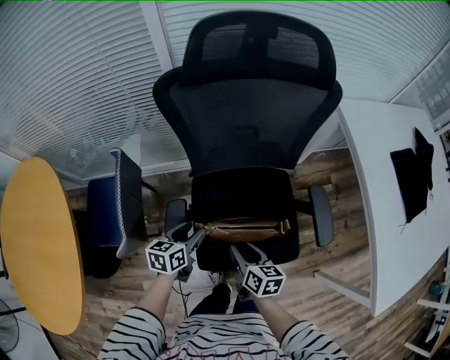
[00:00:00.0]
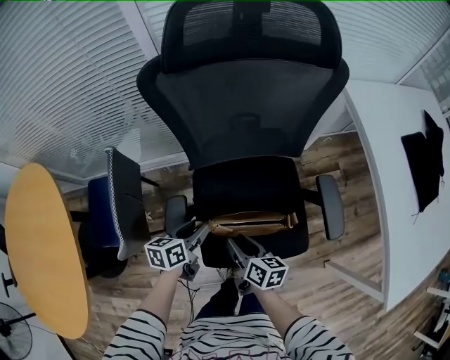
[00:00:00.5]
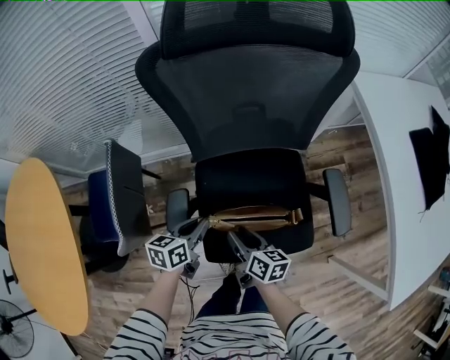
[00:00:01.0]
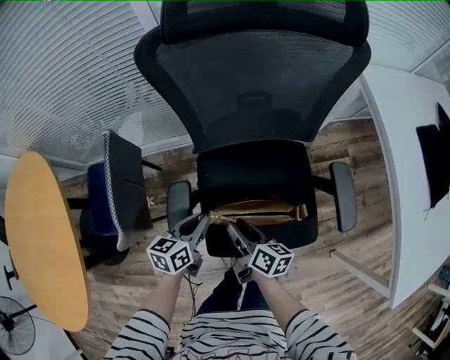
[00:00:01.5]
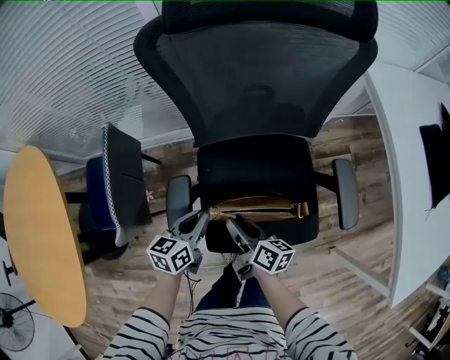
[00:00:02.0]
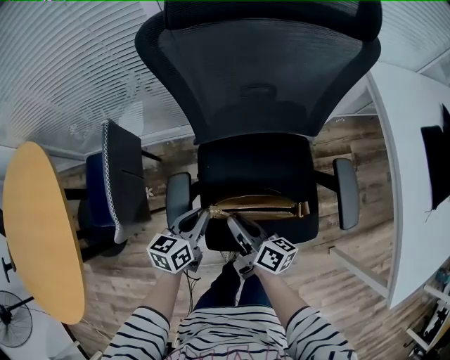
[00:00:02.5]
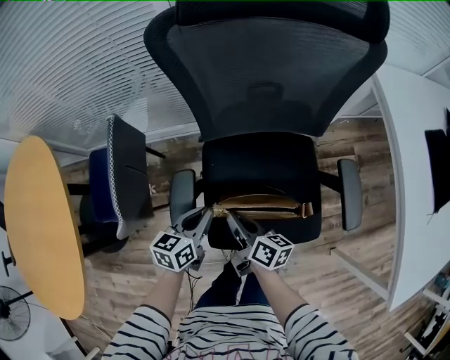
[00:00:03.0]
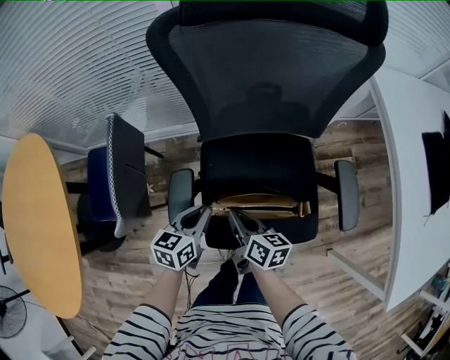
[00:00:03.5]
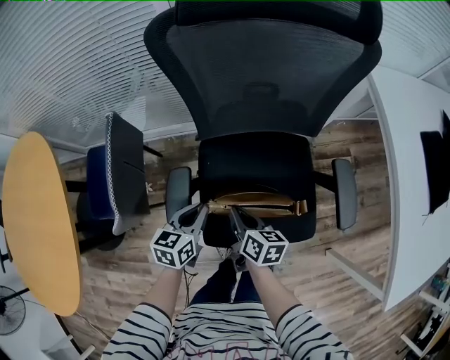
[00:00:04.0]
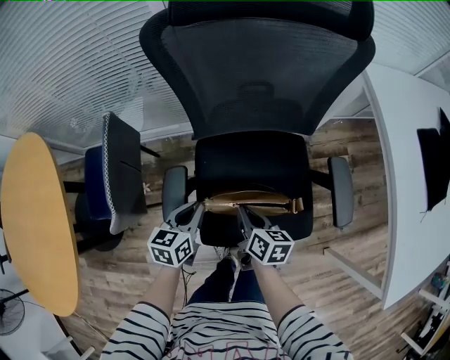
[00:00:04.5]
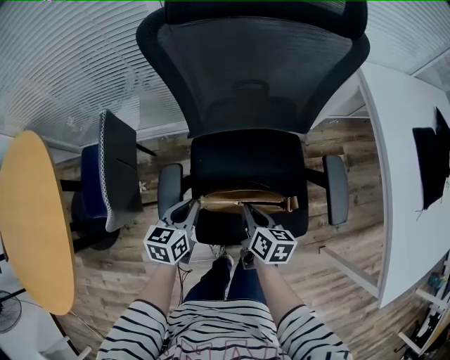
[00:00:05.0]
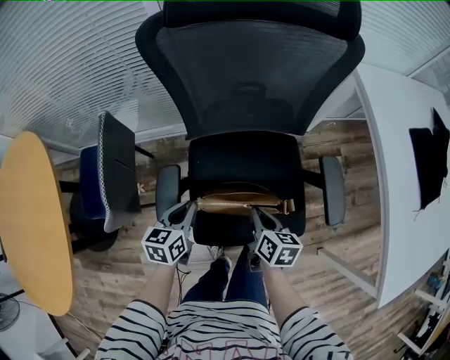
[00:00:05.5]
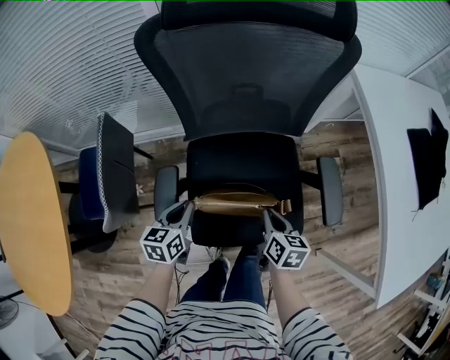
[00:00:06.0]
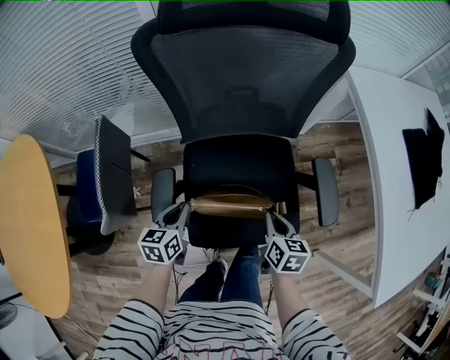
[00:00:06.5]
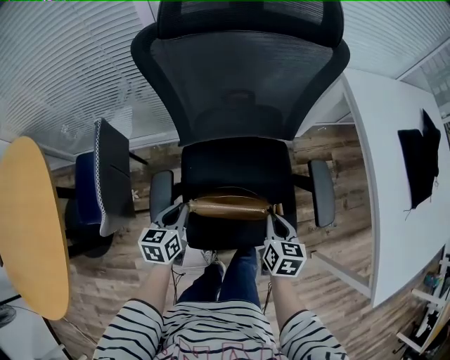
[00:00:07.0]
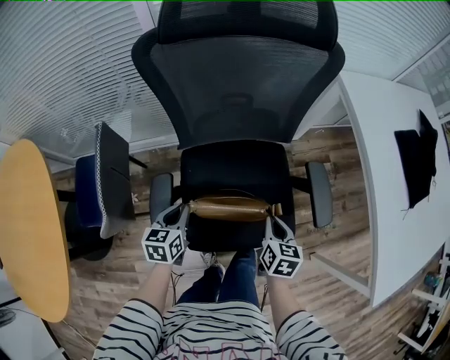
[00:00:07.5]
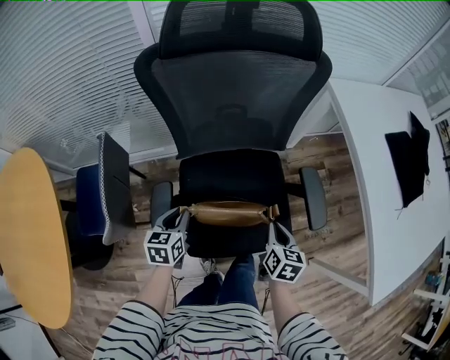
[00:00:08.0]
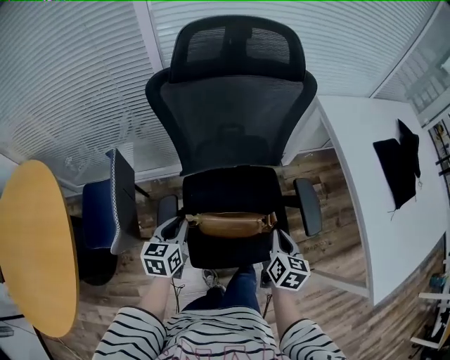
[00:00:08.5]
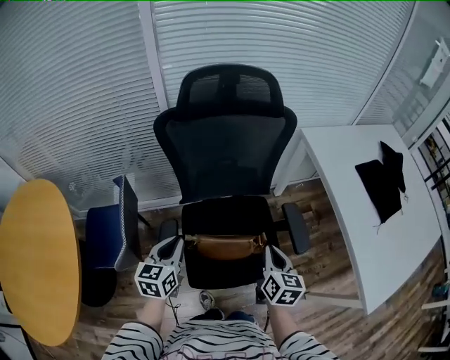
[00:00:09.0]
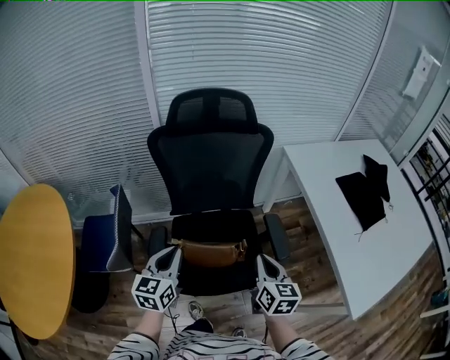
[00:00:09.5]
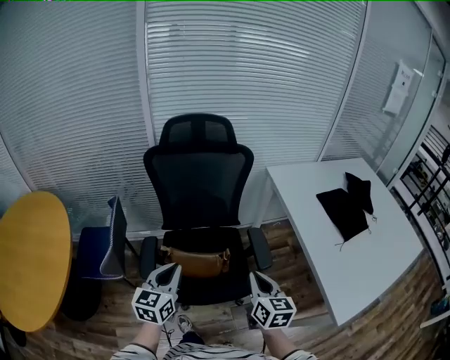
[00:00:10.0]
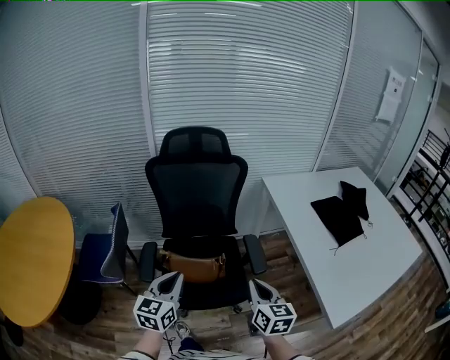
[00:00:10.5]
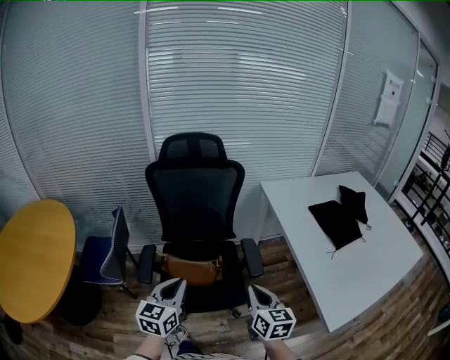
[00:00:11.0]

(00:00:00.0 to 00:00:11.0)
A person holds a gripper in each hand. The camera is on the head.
00:00:00.0 - 00:00:02.0: The left gripper closes. The right gripper moves about 5 cm, and turns by approximately 20 degrees.
00:00:02.0 - 00:00:03.5: The right gripper closes.
00:00:03.5 - 00:00:05.5: The right gripper is displaced to the right by roughly 10 cm.
00:00:05.5 - 00:00:07.5: The right gripper heads to the right, covering roughly 10 cm.
00:00:07.5 - 00:00:09.0: The two grippers go some 20 cm upward.
00:00:09.0 - 00:00:11.0: The right gripper moves backward, to the right and upward, approximately 25 cm. The left gripper shifts about 30 cm to the right, backward and upward.

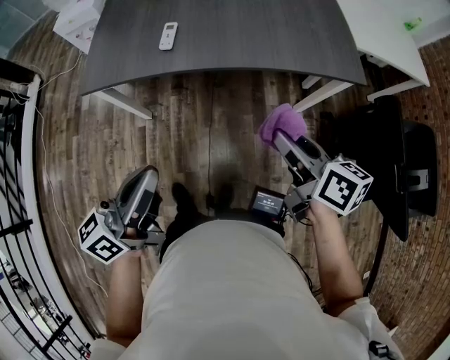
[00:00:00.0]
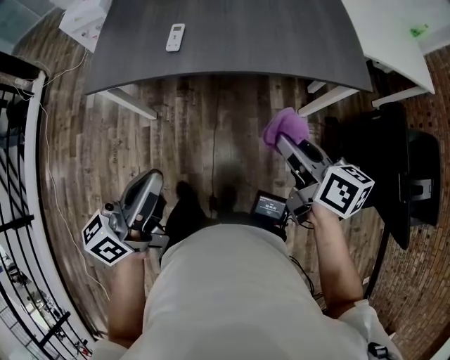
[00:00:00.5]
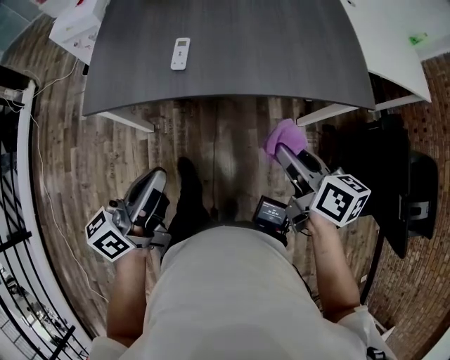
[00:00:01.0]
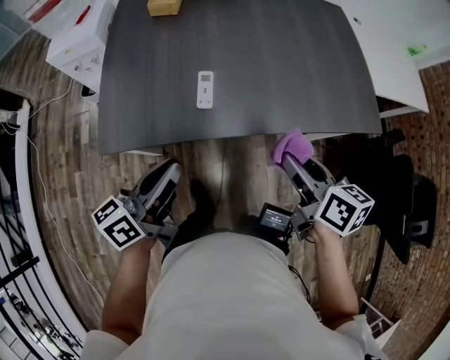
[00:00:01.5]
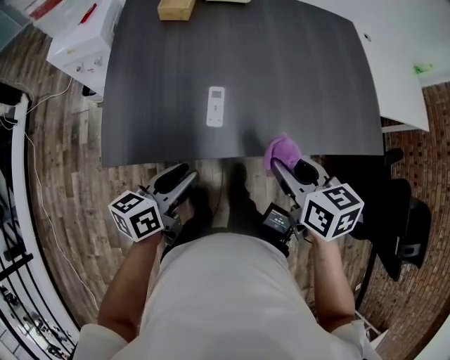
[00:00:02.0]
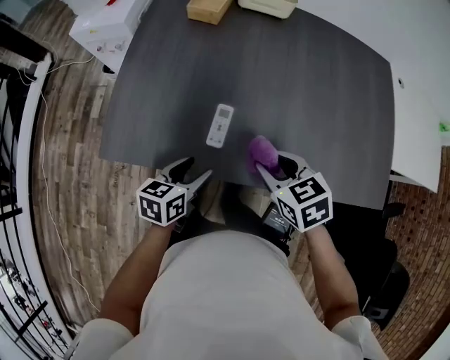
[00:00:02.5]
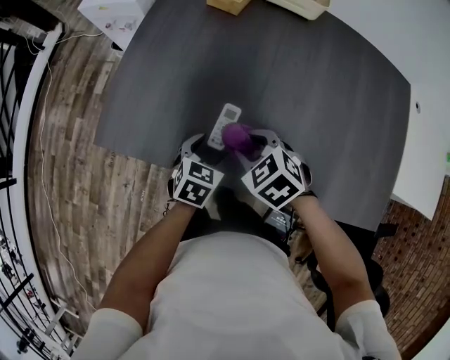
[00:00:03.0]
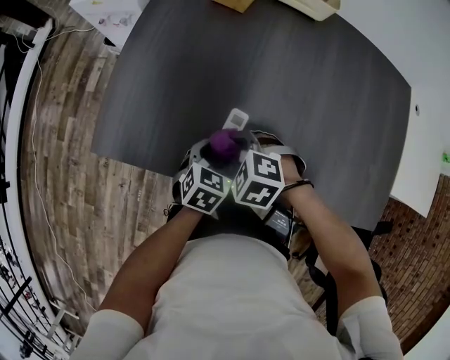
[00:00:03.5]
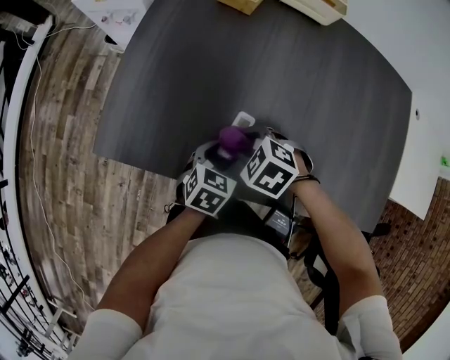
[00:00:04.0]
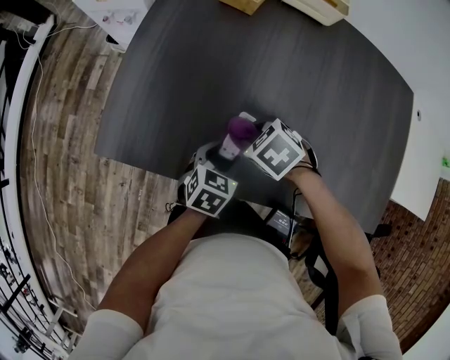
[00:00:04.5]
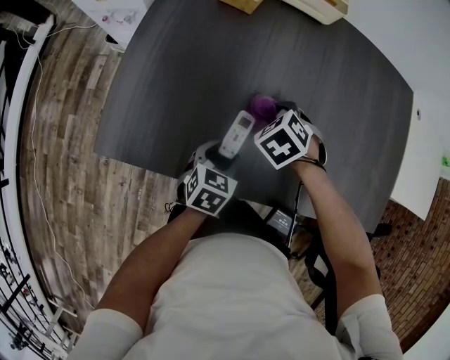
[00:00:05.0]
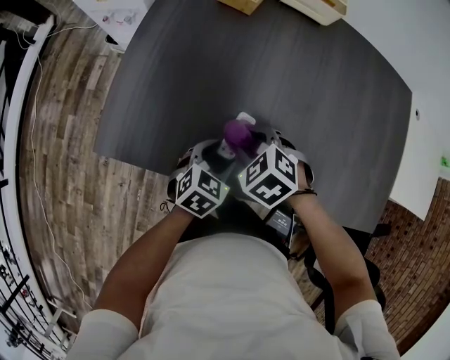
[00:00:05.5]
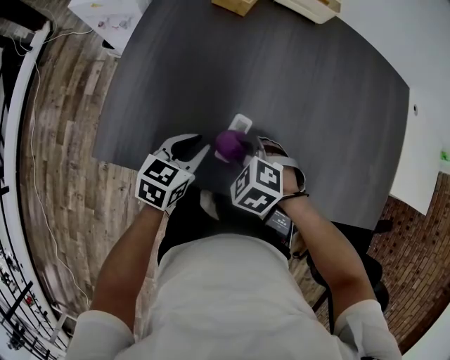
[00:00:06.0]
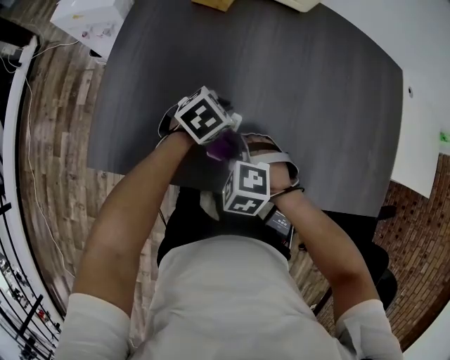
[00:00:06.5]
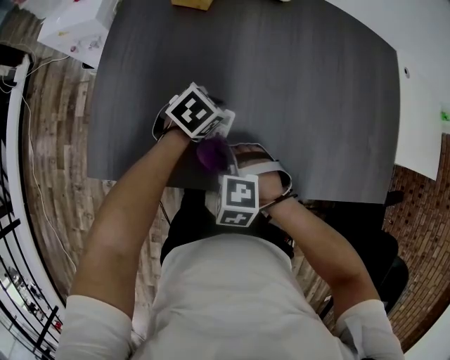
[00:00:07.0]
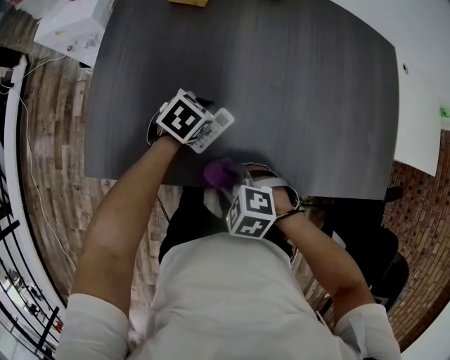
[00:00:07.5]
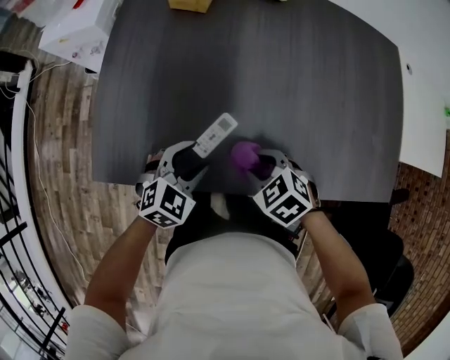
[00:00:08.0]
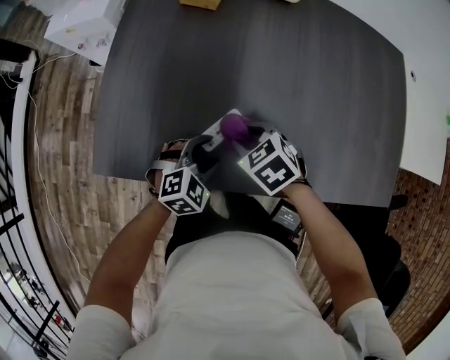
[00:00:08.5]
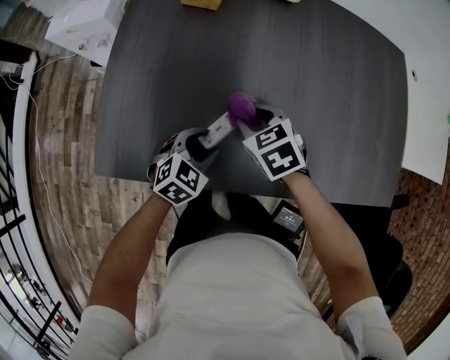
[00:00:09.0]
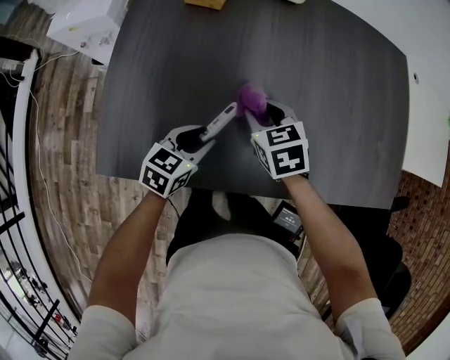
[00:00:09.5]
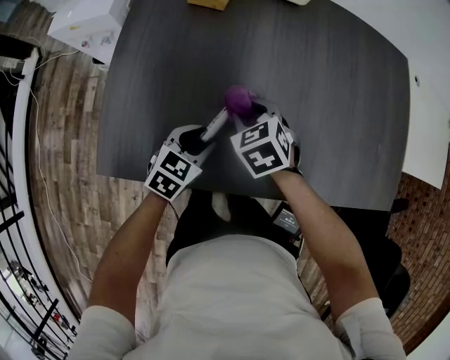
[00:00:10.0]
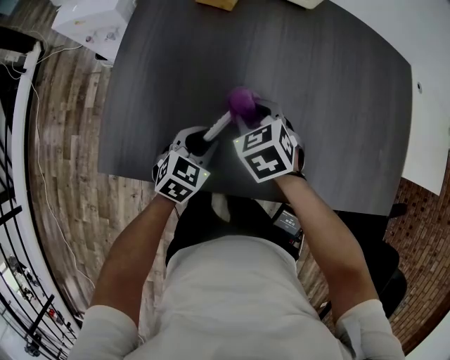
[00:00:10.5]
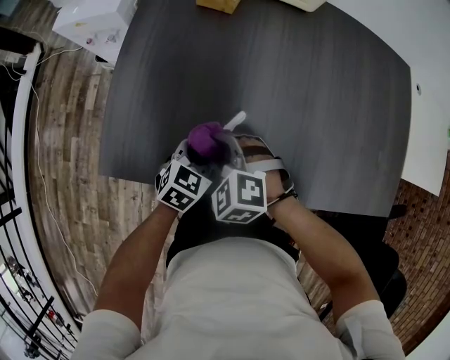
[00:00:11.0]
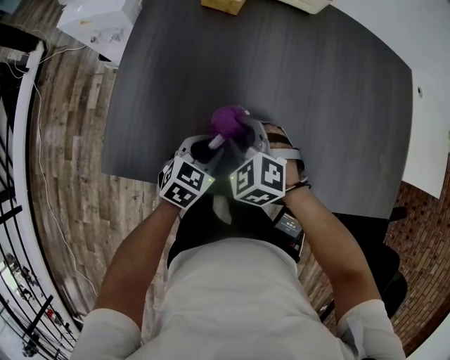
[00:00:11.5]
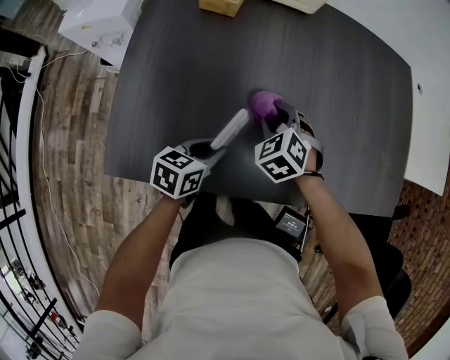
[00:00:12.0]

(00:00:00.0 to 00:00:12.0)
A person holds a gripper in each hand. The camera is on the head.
00:00:00.0 - 00:00:02.0: The right gripper goes roughly 25 cm forward and to the left, and swivels roughly 30 degrees. The left gripper shifts roughly 30 cm forward, to the left and downward, rotates roughly 20 degrees, and opens.
00:00:02.0 - 00:00:04.0: The right gripper shifts by about 25 cm, and twists roughly 60 degrees counterclockwise, seen from behind. Meanwhile the left gripper shifts by approximately 20 cm, and angles its fingers downward, by some 30 degrees.
00:00:04.0 - 00:00:06.0: The left gripper ends up about 10 cm from where it was, and closes its fingers.
00:00:06.0 - 00:00:08.0: The right gripper ends up approximately 10 cm from where it was, and rotates roughly 30 degrees, while the left gripper turns by some 40 degrees.
00:00:08.0 - 00:00:10.0: The left gripper ends up roughly 5 cm from where it was, and swivels approximately 20 degrees; the right gripper moves forward and to the left, approximately 15 cm.
00:00:10.0 - 00:00:12.0: The right gripper moves roughly 10 cm backward and comes back, and changes its angle by about 20 degrees; the left gripper changes its angle by about 30 degrees.

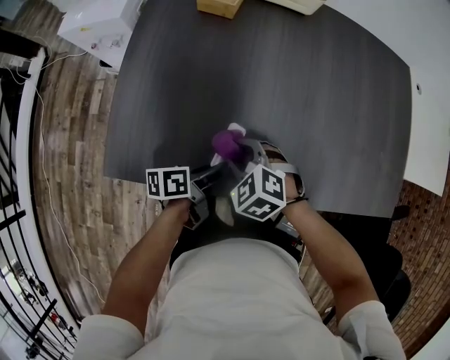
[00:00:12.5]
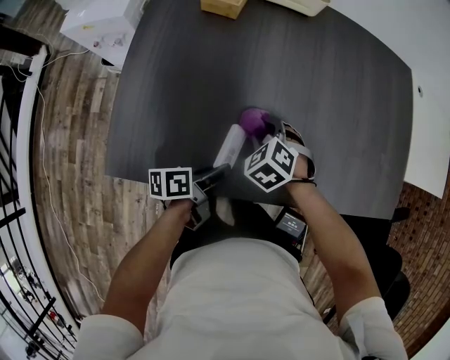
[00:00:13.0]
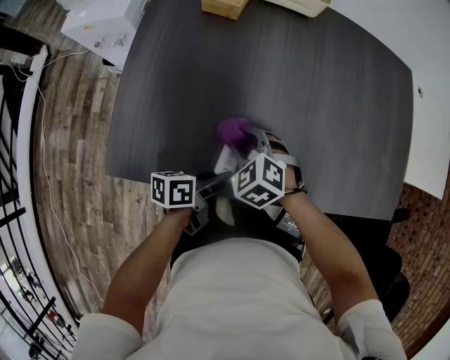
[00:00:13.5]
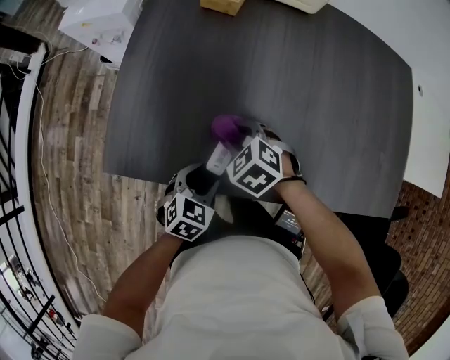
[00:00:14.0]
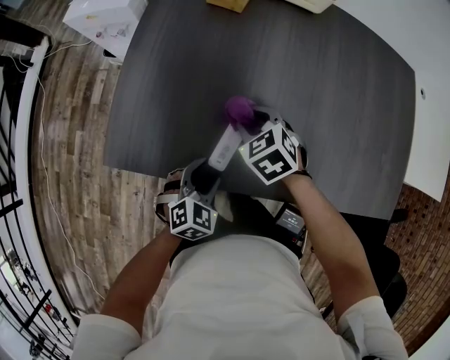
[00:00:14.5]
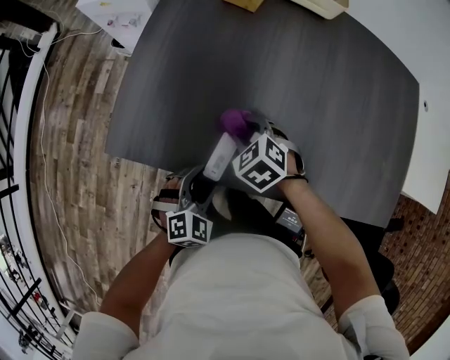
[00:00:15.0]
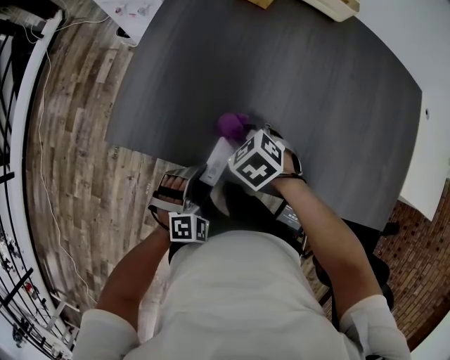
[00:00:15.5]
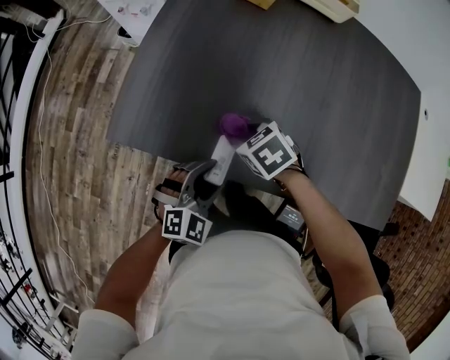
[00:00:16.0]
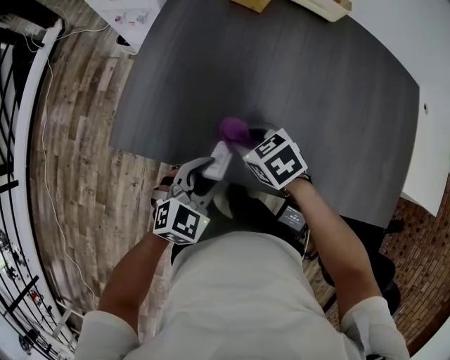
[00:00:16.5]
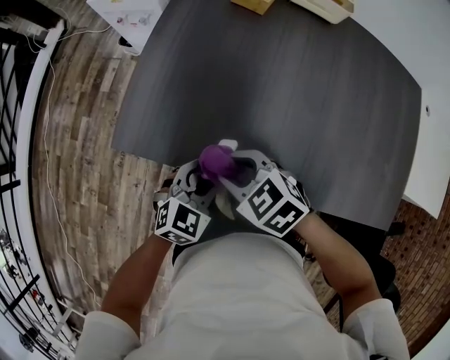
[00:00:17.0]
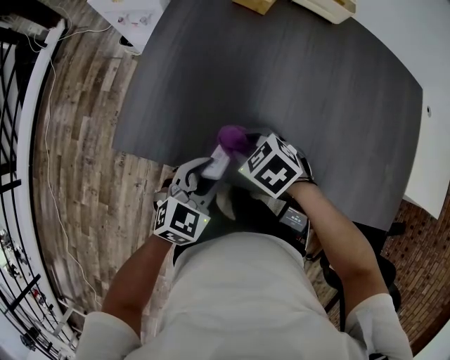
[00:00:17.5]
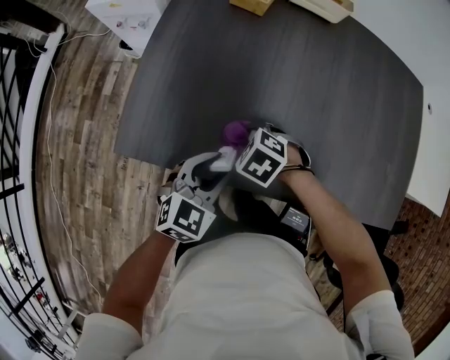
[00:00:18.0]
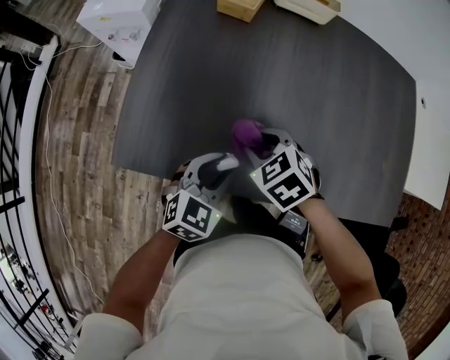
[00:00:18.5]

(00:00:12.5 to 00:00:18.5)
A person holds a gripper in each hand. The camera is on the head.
00:00:12.5 - 00:00:14.5: The left gripper rotates around the line of its fingers by roughly 80 degrees, clockwise from behind, and opens its fingers, while the right gripper shifts by approximately 5 cm.
00:00:14.5 - 00:00:16.5: The left gripper travels upward by some 5 cm. Meanwhile the right gripper is displaced backward by about 5 cm.
00:00:16.5 - 00:00:18.5: The right gripper swings up and down, about 10 cm each way, with 2 reversals, while the left gripper changes place by roughly 5 cm.
